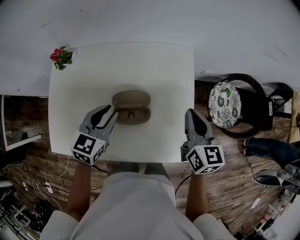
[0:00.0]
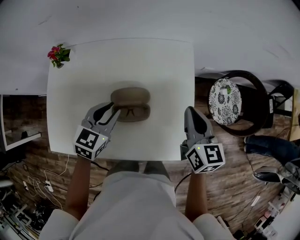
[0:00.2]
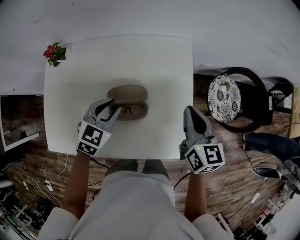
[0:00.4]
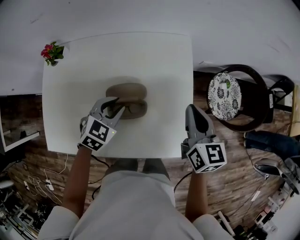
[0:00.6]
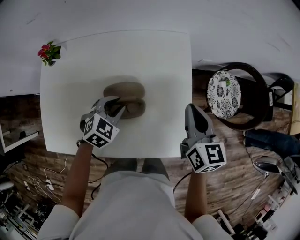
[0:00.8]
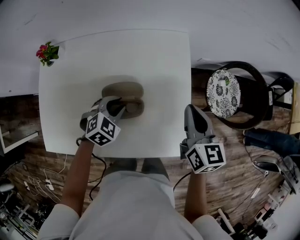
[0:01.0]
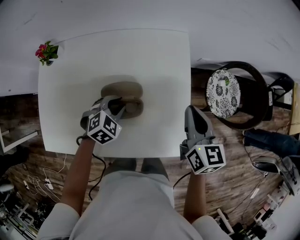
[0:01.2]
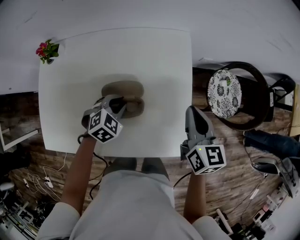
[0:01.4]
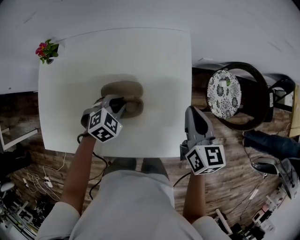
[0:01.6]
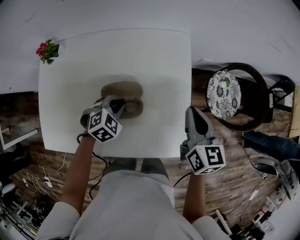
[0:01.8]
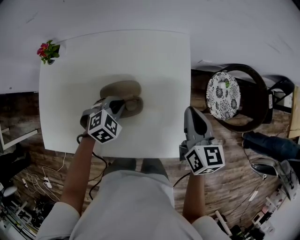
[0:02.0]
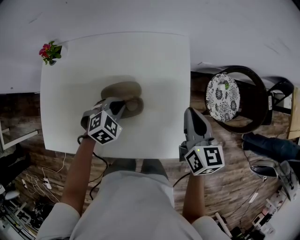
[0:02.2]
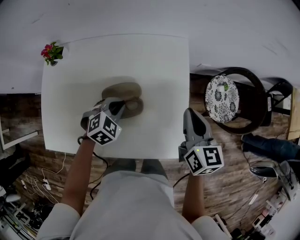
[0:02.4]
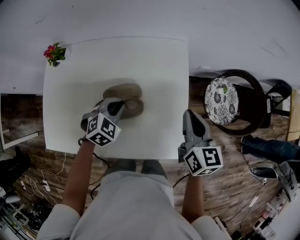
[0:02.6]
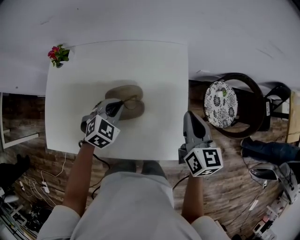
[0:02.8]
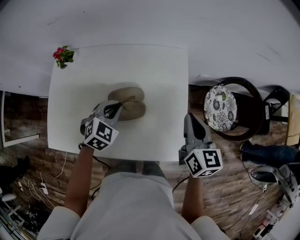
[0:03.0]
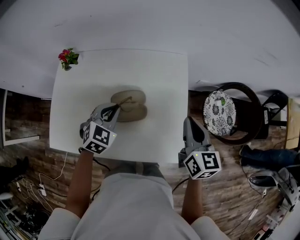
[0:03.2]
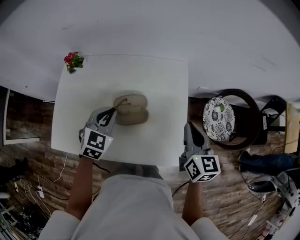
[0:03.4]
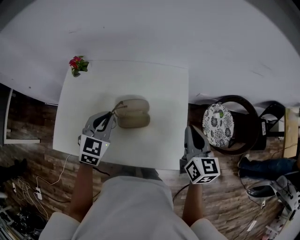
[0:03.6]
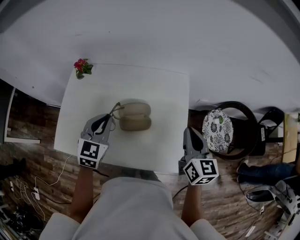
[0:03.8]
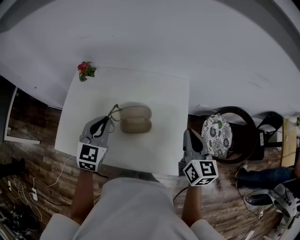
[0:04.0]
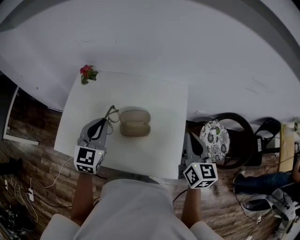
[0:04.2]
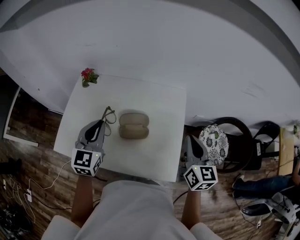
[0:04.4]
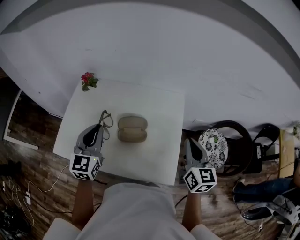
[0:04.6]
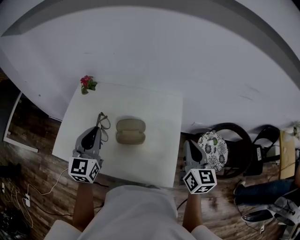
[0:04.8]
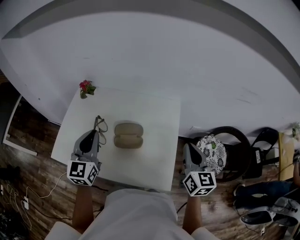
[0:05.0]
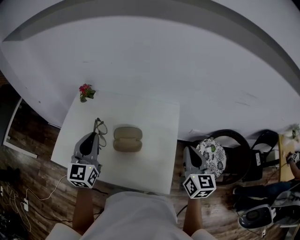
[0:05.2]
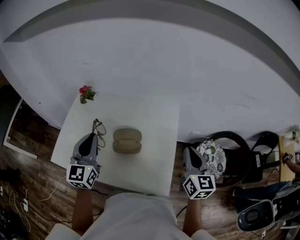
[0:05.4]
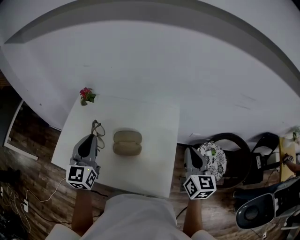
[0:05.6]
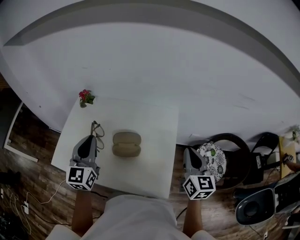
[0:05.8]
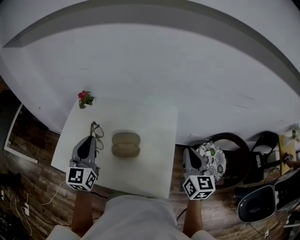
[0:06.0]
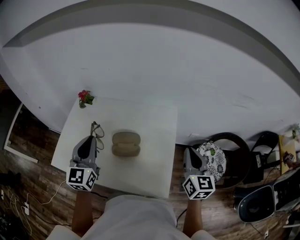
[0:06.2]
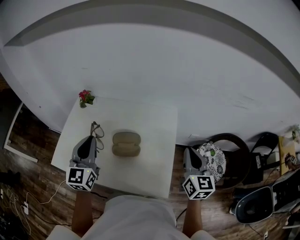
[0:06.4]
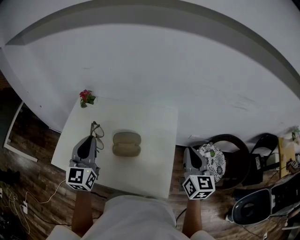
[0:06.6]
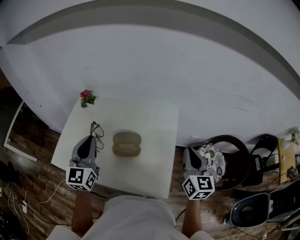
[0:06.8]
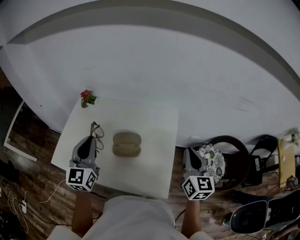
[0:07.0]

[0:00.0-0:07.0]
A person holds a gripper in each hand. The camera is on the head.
0:00.0 to 0:01.4: The left gripper heads downward and to the right, covering about 15 cm, and rotates about 40 degrees.
0:01.4 to 0:02.8: The left gripper shifts about 5 cm upward.
0:02.8 to 0:04.2: The left gripper shifts some 20 cm upward and to the left, and angles its fingers upward, by some 30 degrees; the right gripper goes some 10 cm upward.
0:04.2 to 0:05.6: The right gripper travels to the right by roughly 5 cm; the left gripper goes approximately 5 cm upward.
0:05.6 to 0:07.0: The grippers stay close to where they were, moving slightly.

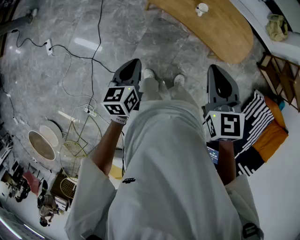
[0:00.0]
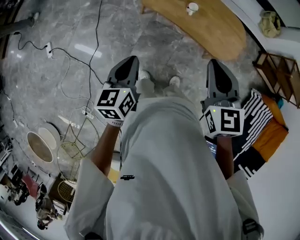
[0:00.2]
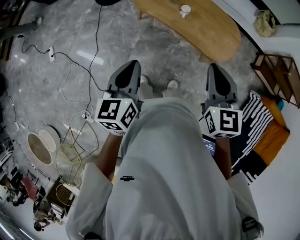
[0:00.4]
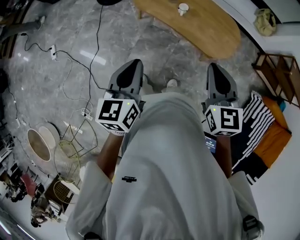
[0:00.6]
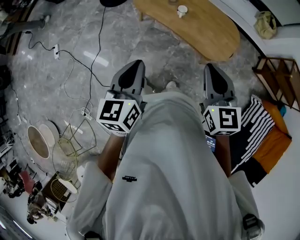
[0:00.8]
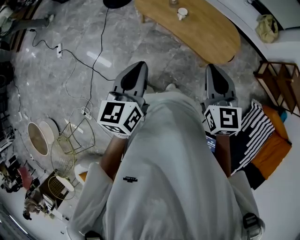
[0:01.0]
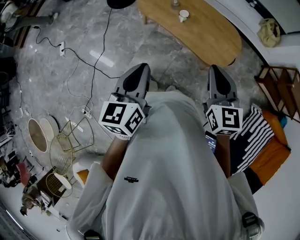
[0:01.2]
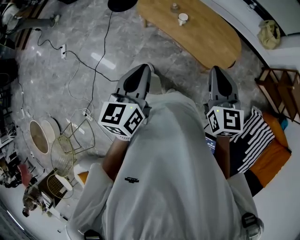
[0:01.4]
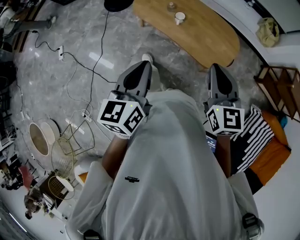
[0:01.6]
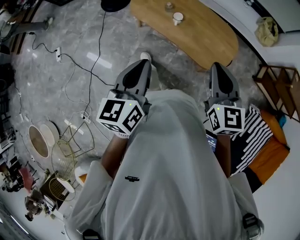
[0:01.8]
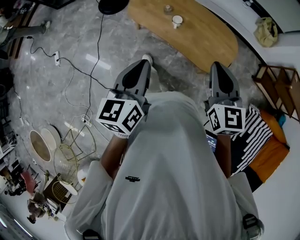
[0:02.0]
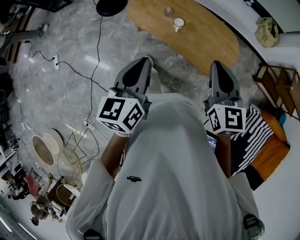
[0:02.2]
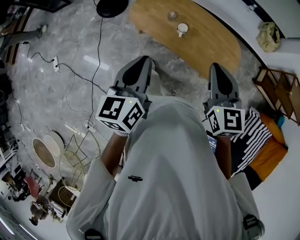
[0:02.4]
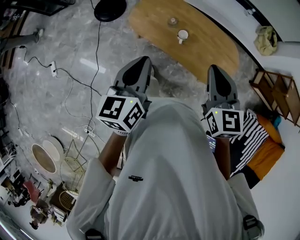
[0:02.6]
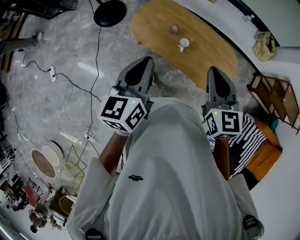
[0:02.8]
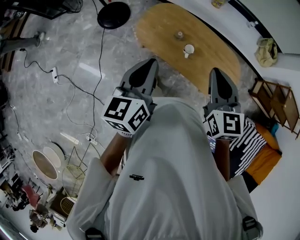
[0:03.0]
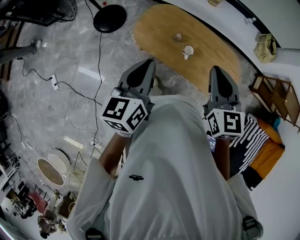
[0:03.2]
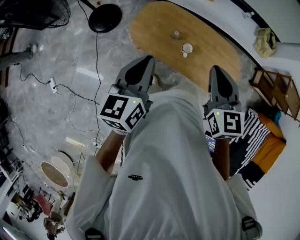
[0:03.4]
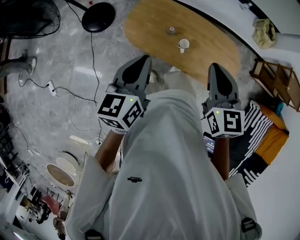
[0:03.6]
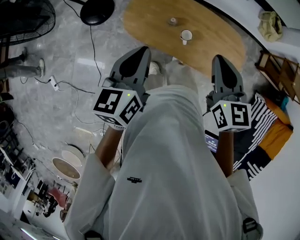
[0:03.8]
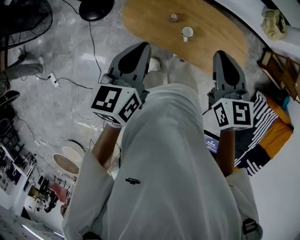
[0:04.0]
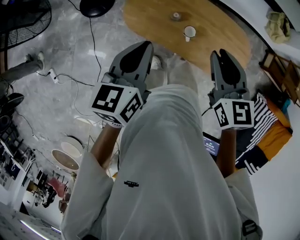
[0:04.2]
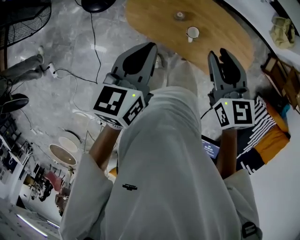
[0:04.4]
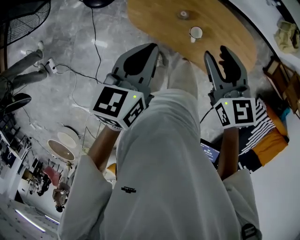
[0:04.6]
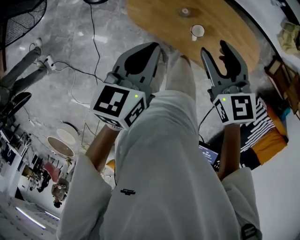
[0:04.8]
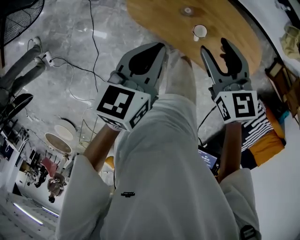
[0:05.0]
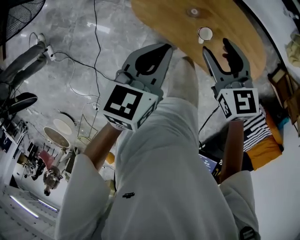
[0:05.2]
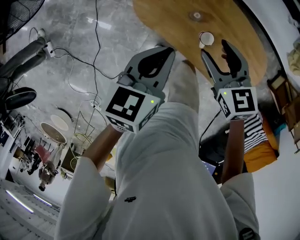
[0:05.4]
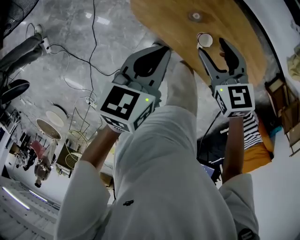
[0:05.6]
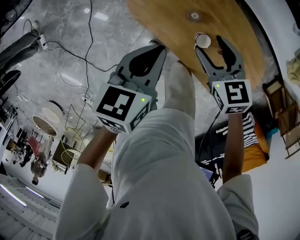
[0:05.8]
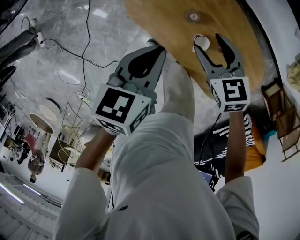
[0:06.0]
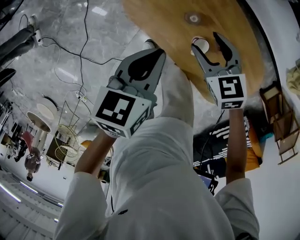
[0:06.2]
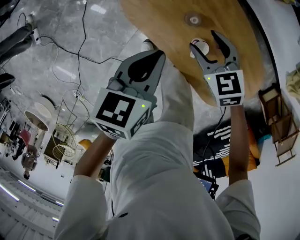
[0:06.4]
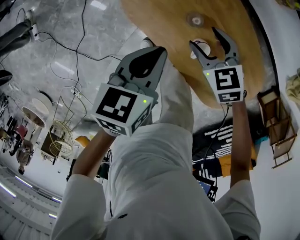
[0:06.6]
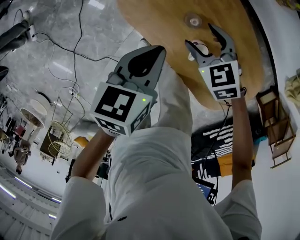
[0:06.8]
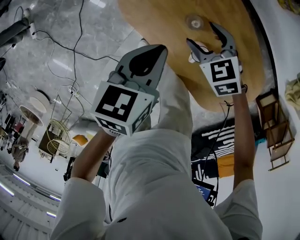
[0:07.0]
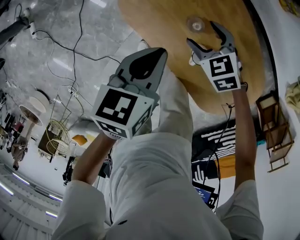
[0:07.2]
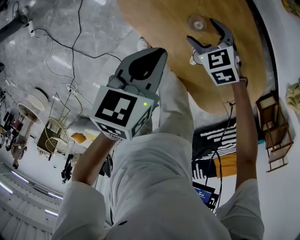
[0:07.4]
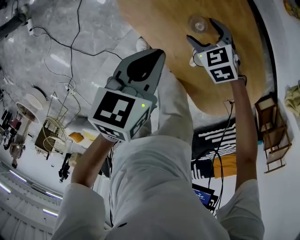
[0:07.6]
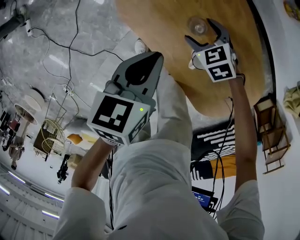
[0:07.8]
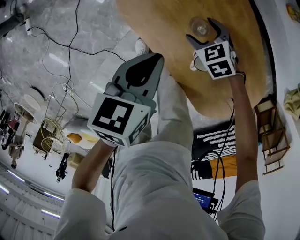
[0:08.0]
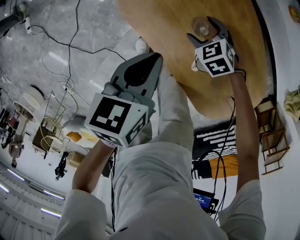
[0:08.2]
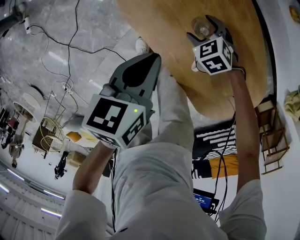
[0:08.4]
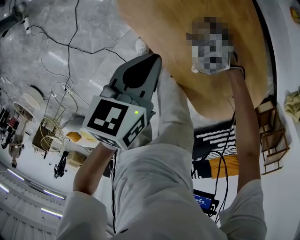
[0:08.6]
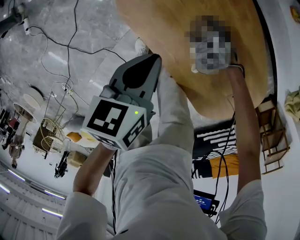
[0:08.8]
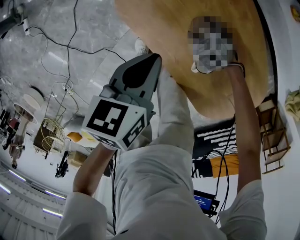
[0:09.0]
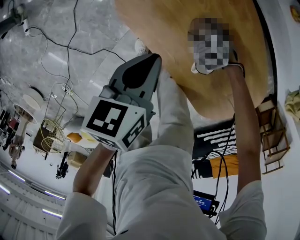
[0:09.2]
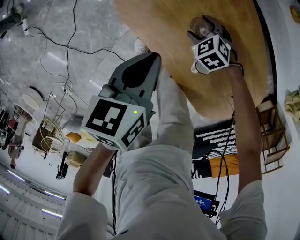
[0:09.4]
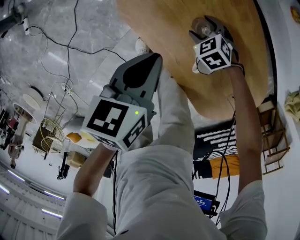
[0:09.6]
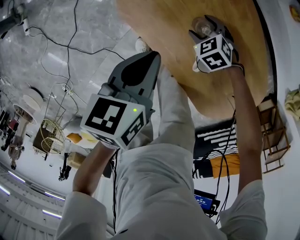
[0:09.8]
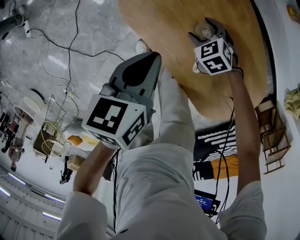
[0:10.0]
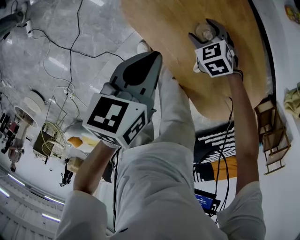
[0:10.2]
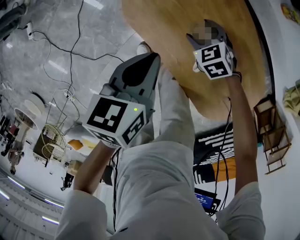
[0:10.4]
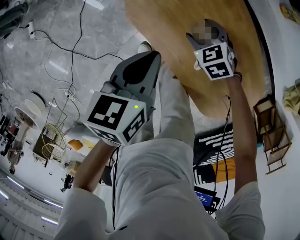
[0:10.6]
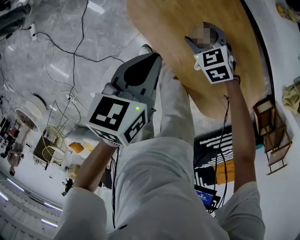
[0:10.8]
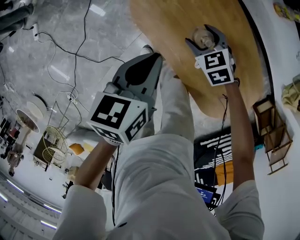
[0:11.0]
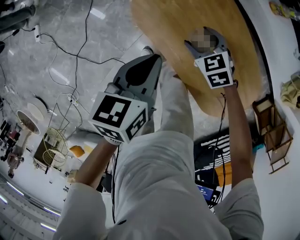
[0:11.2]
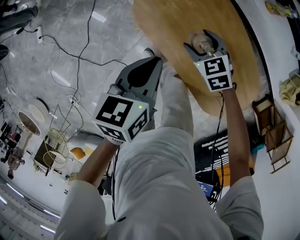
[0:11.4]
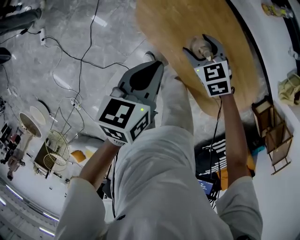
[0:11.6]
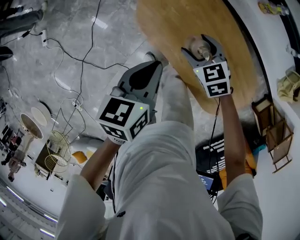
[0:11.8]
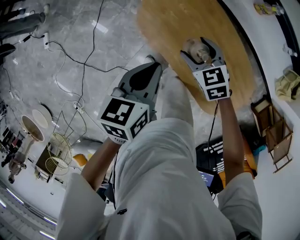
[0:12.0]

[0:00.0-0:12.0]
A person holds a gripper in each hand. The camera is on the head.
0:00.0 to 0:01.6: The right gripper heads to the right, covering roughly 25 cm; the left gripper heads to the right and upward, covering some 30 cm.
0:01.6 to 0:03.0: Both grippers move forward and to the left, some 30 cm.
0:03.0 to 0:04.4: Both grippers move forward and downward, about 15 cm.
0:04.4 to 0:06.0: The left gripper shifts about 15 cm downward; the right gripper moves downward and forward, some 25 cm, changes its angle by approximately 30 degrees, and opens its fingers.
0:06.0 to 0:07.6: The right gripper goes some 20 cm downward, and turns by about 30 degrees; the left gripper is displaced downward by about 10 cm.
0:07.6 to 0:09.0: The right gripper heads downward, covering about 10 cm.
0:09.0 to 0:10.4: The right gripper heads upward, covering some 5 cm.
0:10.4 to 0:12.0: The right gripper is displaced upward by approximately 20 cm; the left gripper is displaced upward by some 15 cm.

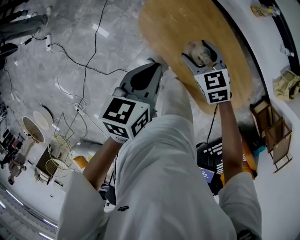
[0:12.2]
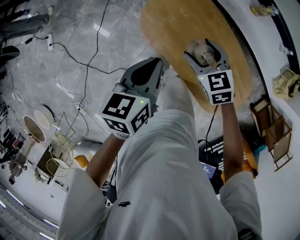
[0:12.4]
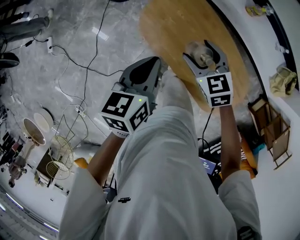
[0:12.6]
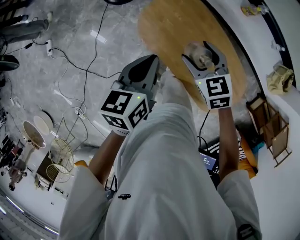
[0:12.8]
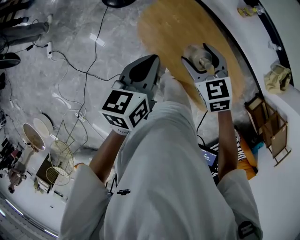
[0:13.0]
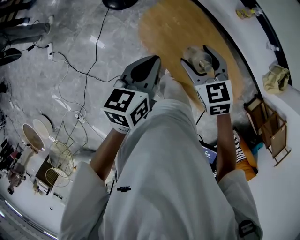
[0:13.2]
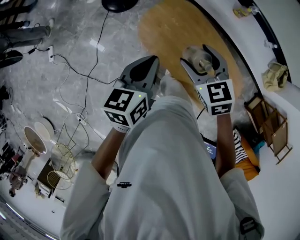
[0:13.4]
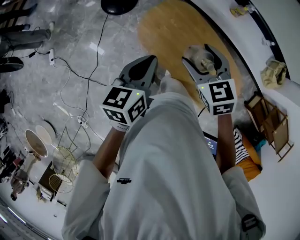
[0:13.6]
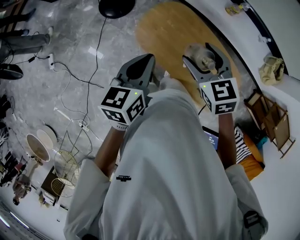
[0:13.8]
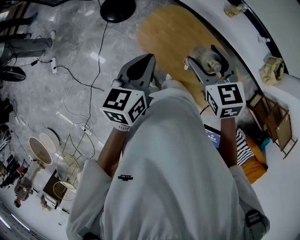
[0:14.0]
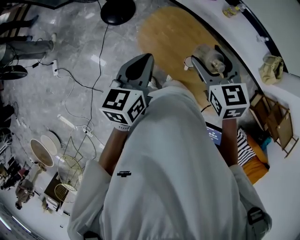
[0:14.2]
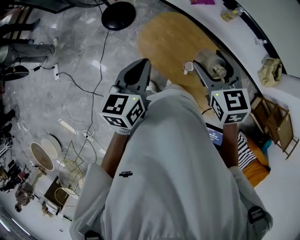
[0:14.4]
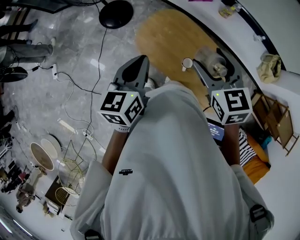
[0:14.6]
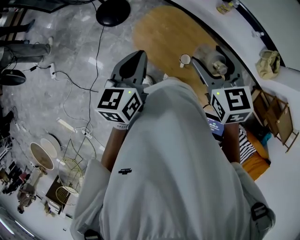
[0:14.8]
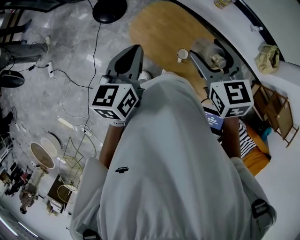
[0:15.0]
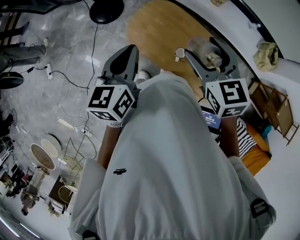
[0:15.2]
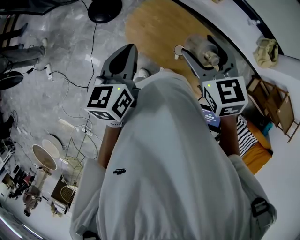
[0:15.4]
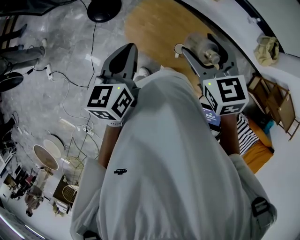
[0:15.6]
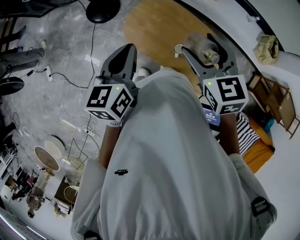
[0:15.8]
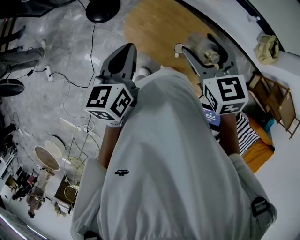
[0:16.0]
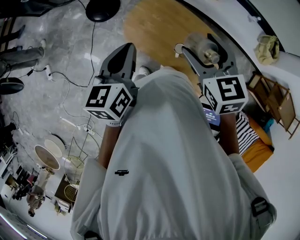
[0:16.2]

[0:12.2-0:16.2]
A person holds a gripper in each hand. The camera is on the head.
0:12.2 to 0:13.6: The right gripper travels upward by roughly 20 cm. Meanwhile the left gripper moves upward, about 10 cm.
0:13.6 to 0:14.8: The right gripper goes roughly 10 cm upward, while the left gripper heads upward, covering approximately 5 cm.
0:14.8 to 0:16.2: The grippers stay close to where they were, moving slightly.
